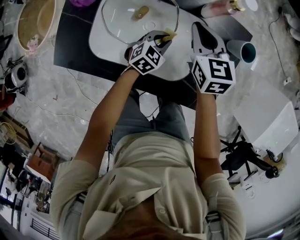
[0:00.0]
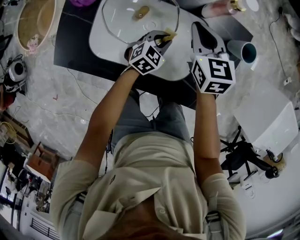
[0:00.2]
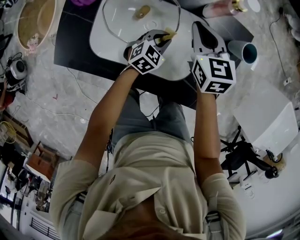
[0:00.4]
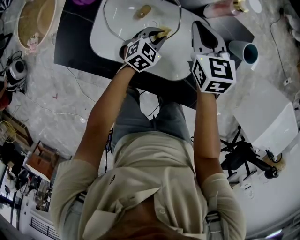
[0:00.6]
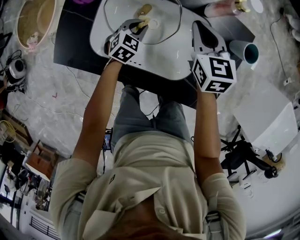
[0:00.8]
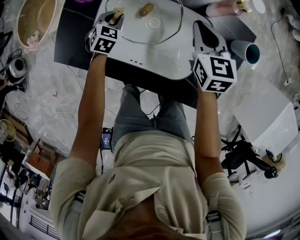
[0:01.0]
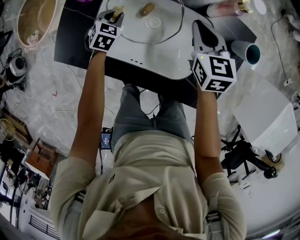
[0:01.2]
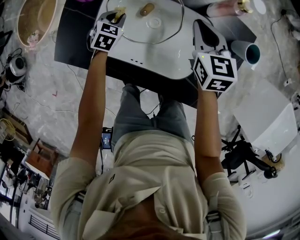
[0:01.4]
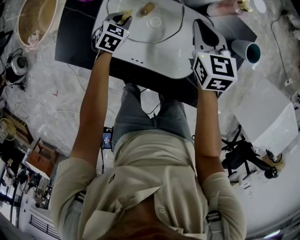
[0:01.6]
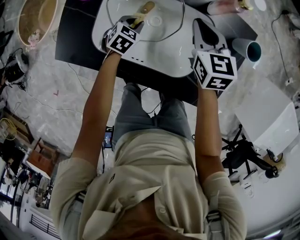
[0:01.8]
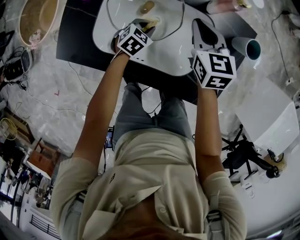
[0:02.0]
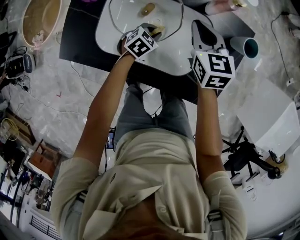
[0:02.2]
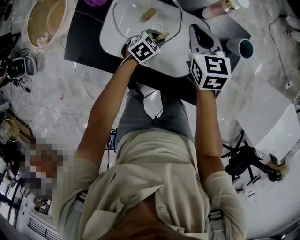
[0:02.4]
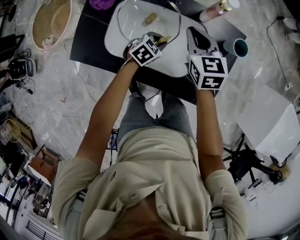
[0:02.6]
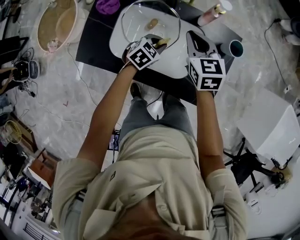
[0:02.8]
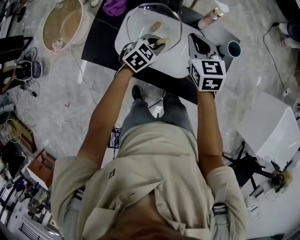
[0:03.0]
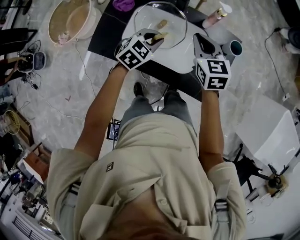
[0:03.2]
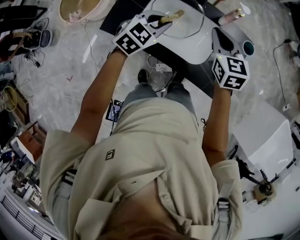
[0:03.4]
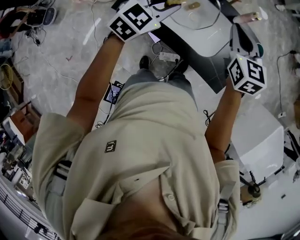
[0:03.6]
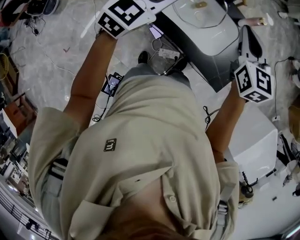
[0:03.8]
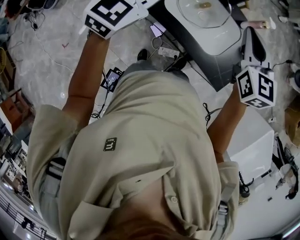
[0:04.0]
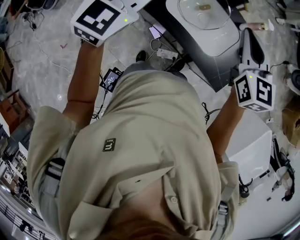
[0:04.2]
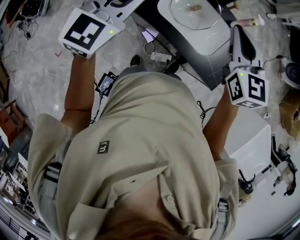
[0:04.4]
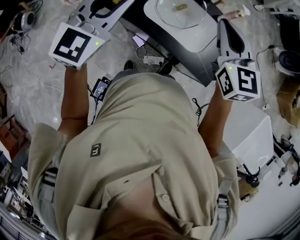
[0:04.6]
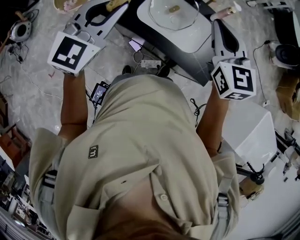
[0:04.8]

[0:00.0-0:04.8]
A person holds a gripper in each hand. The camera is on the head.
0:00.0 to 0:01.6: The left gripper goes approximately 20 cm to the left, and rotates approximately 20 degrees.
0:01.6 to 0:03.2: The right gripper is displaced upward and backward by approximately 15 cm. Meanwhile the left gripper is displaced upward and to the right by approximately 25 cm, and rotates roughly 20 degrees.
0:03.2 to 0:04.8: The left gripper travels upward, to the left and backward by some 40 cm, and swivels approximately 40 degrees, while the right gripper shifts some 25 cm upward and backward, and rotates about 20 degrees.

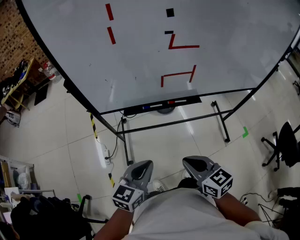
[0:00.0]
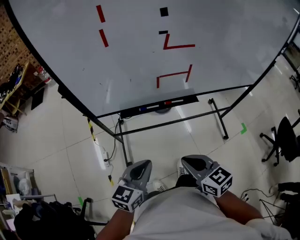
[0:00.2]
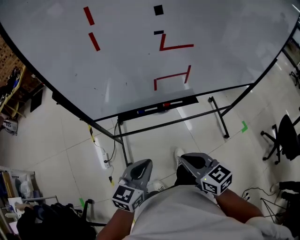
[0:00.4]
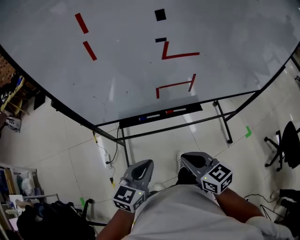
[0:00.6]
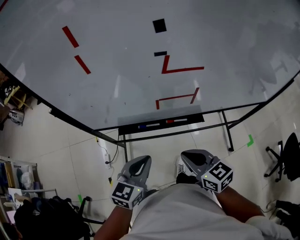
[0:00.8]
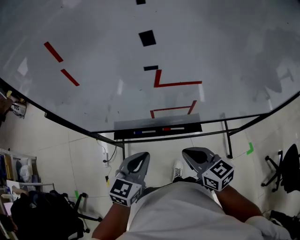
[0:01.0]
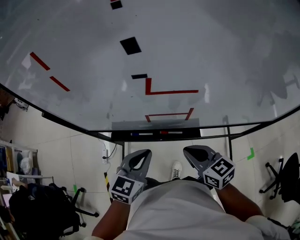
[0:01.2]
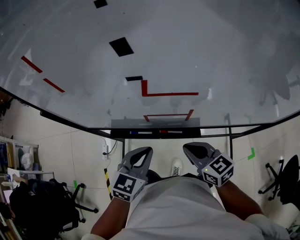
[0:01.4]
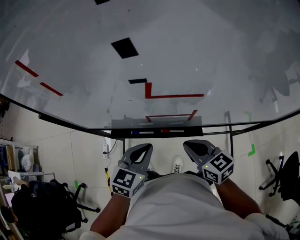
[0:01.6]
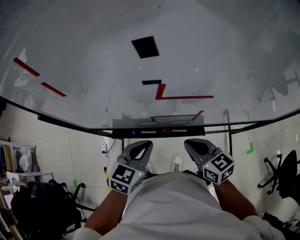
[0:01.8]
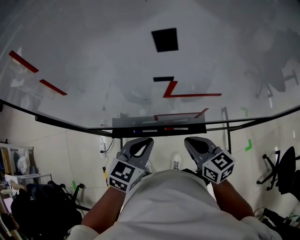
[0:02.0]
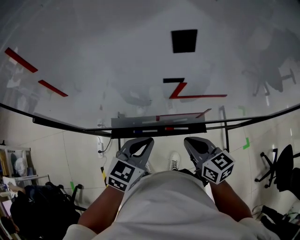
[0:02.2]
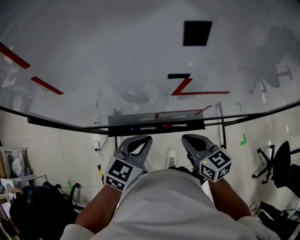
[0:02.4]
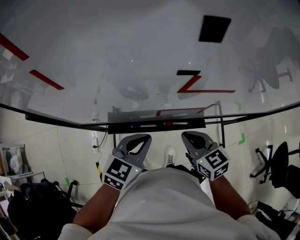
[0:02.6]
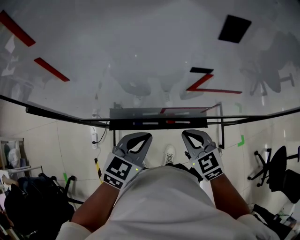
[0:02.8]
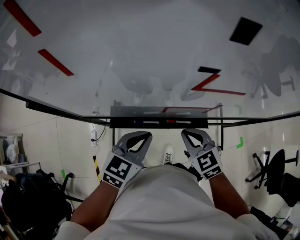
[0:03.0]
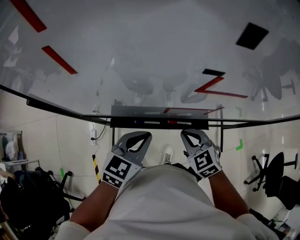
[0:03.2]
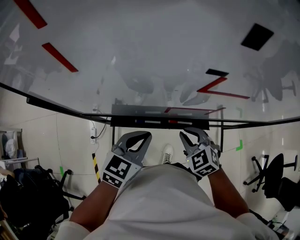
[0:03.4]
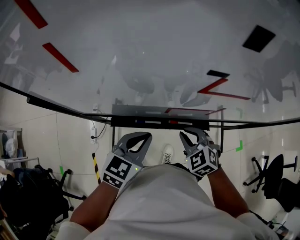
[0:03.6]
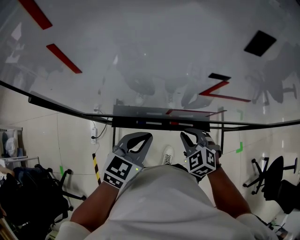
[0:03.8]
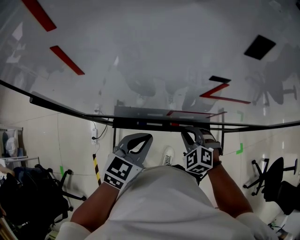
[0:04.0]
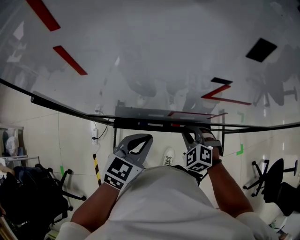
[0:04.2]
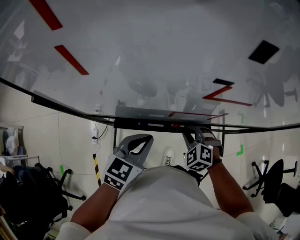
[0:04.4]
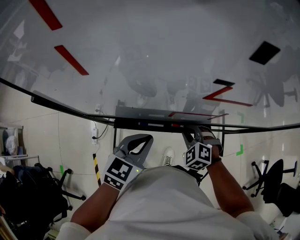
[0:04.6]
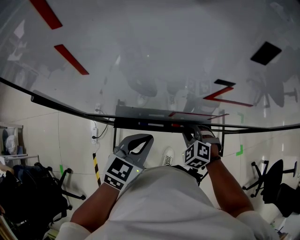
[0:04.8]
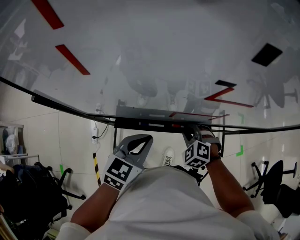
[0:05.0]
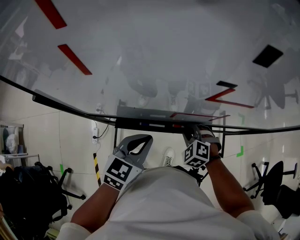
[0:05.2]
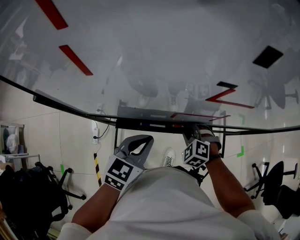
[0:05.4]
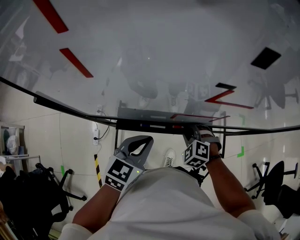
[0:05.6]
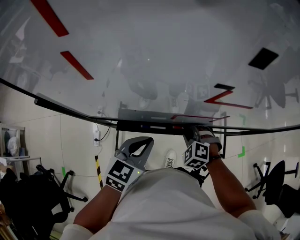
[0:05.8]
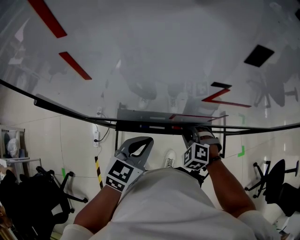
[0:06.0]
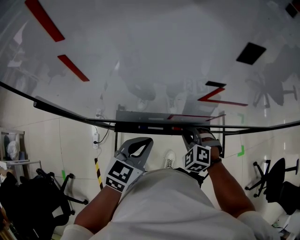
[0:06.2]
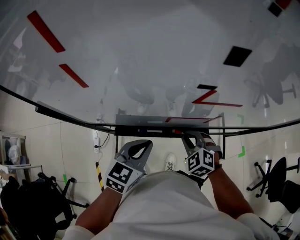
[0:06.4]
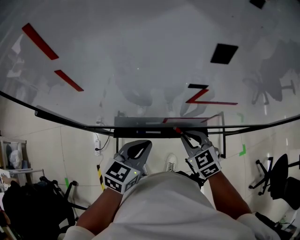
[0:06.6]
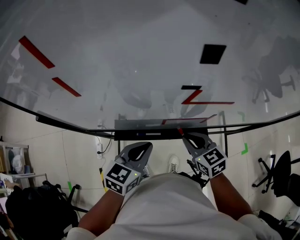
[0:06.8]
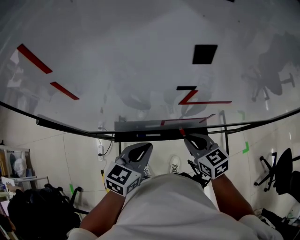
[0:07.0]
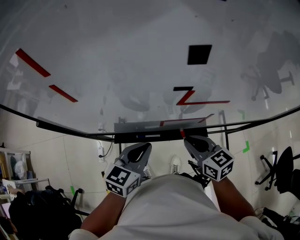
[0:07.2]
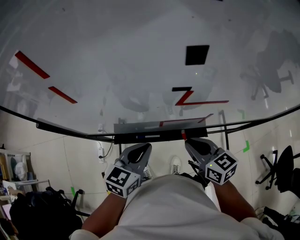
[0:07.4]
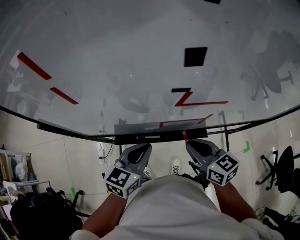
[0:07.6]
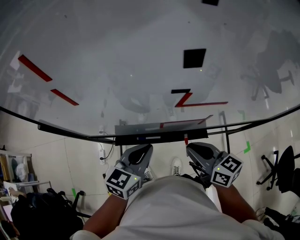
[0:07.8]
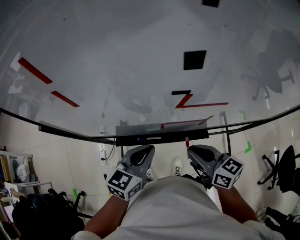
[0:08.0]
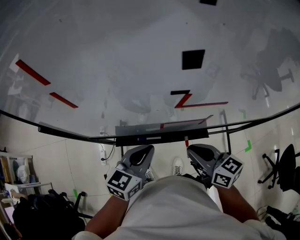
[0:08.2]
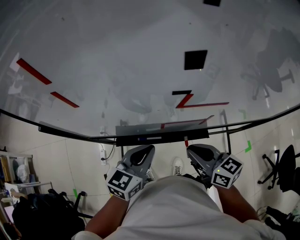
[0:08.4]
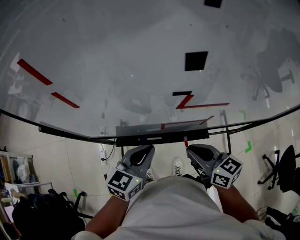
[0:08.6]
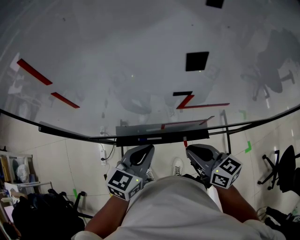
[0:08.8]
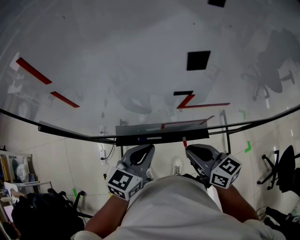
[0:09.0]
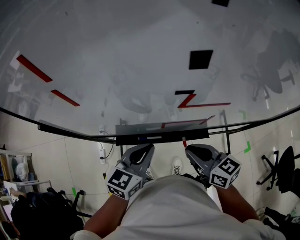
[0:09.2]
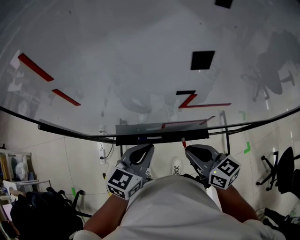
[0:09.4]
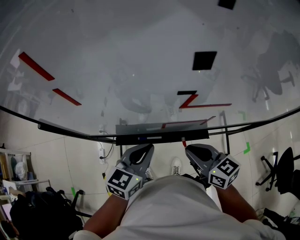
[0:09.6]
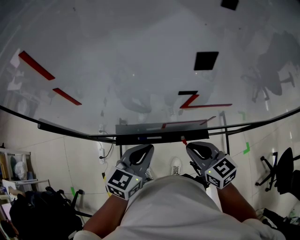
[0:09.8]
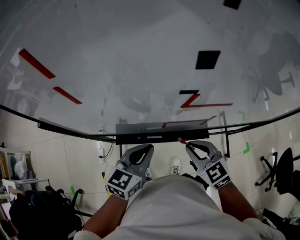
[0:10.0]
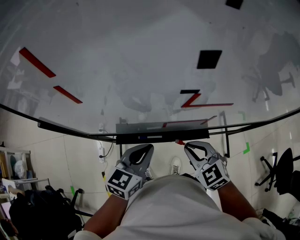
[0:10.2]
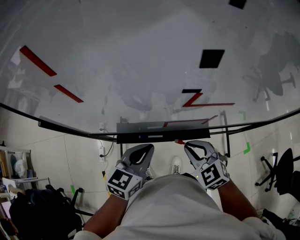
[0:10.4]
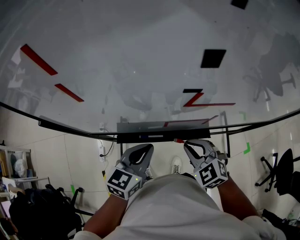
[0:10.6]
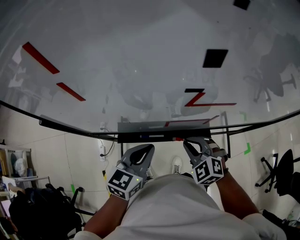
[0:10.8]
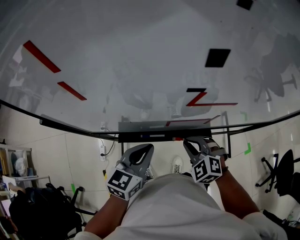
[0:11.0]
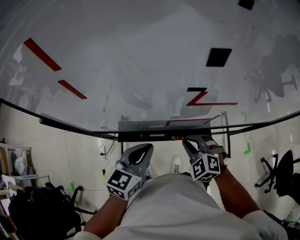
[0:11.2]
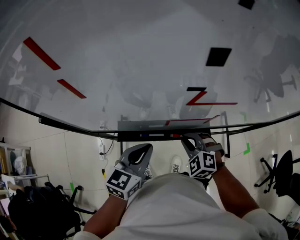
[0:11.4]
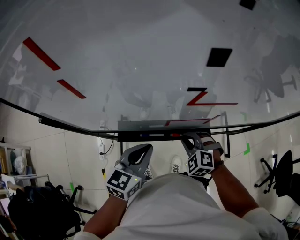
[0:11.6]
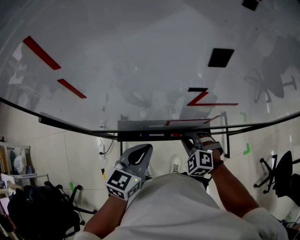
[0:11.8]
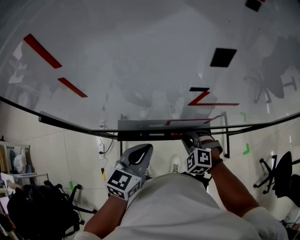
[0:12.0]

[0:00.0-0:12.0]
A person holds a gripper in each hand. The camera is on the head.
0:00.0 to 0:01.6: Both grippers travel together forward and to the right, about 25 cm.
0:01.6 to 0:03.0: The right gripper changes place by approximately 5 cm, and changes its angle by some 30 degrees.
0:03.0 to 0:04.4: The right gripper goes about 5 cm downward, and rotates roughly 40 degrees.
0:04.4 to 0:06.0: The grippers move only a little.
0:06.0 to 0:07.6: The right gripper heads upward, covering about 15 cm, and rolls clockwise, seen from behind, by roughly 70 degrees.
0:07.6 to 0:09.0: There are only small adjustments of the grippers.
0:09.0 to 0:10.4: The right gripper rotates around the line of its fingers by some 40 degrees, counterclockwise from behind.
0:10.4 to 0:12.0: The right gripper goes some 10 cm downward, and rotates approximately 30 degrees.

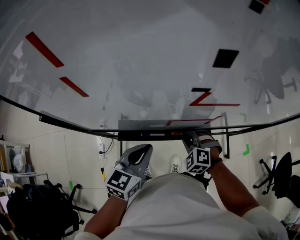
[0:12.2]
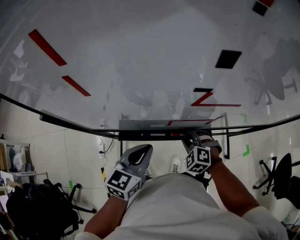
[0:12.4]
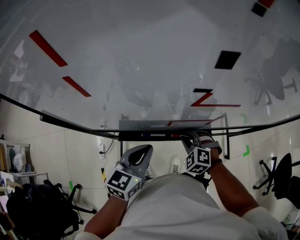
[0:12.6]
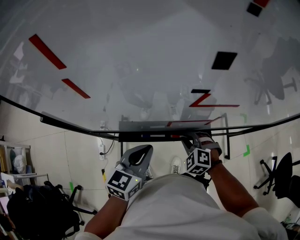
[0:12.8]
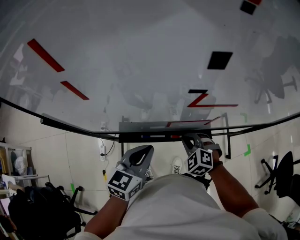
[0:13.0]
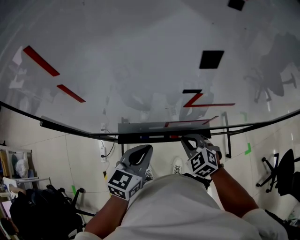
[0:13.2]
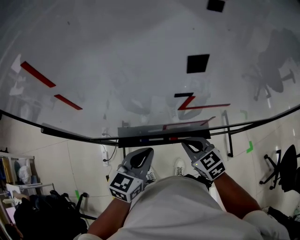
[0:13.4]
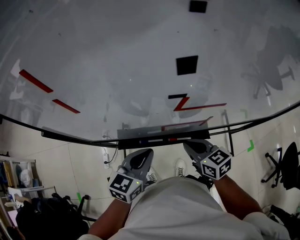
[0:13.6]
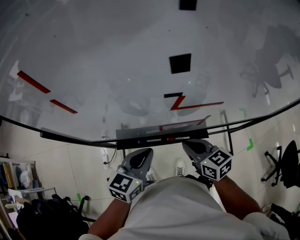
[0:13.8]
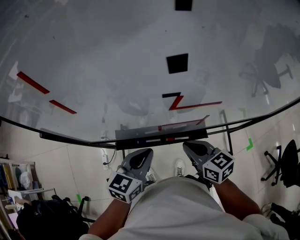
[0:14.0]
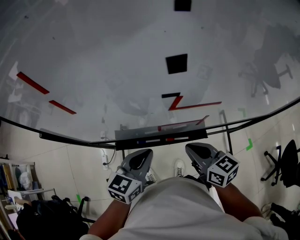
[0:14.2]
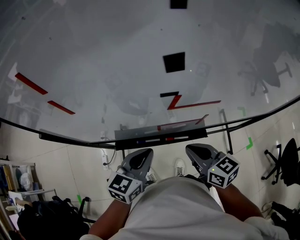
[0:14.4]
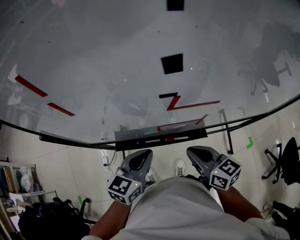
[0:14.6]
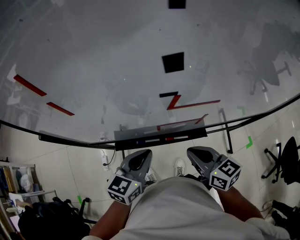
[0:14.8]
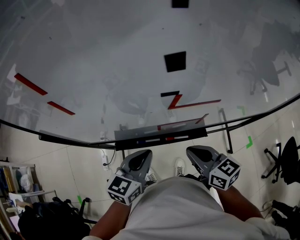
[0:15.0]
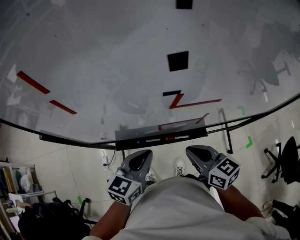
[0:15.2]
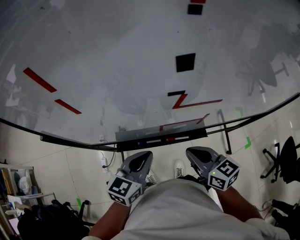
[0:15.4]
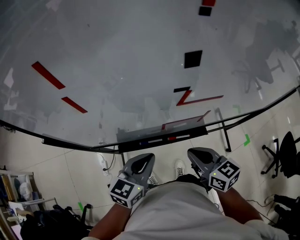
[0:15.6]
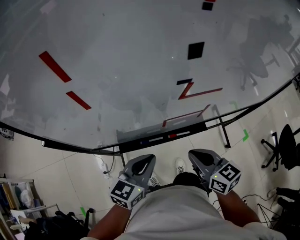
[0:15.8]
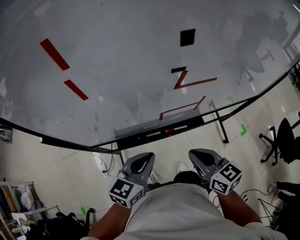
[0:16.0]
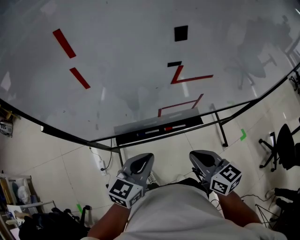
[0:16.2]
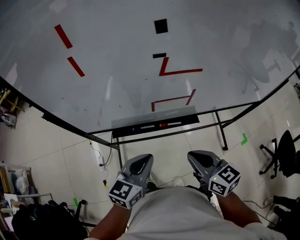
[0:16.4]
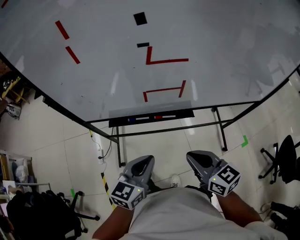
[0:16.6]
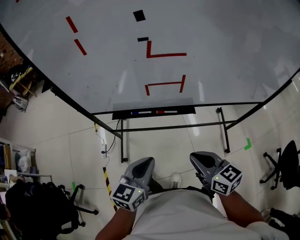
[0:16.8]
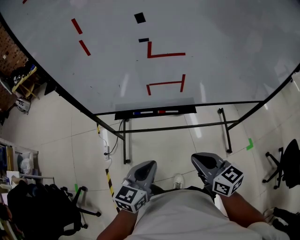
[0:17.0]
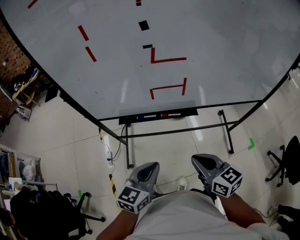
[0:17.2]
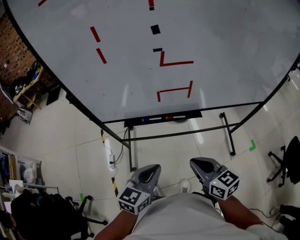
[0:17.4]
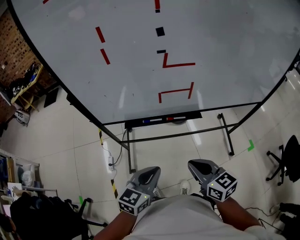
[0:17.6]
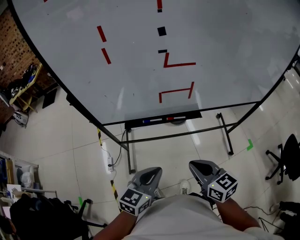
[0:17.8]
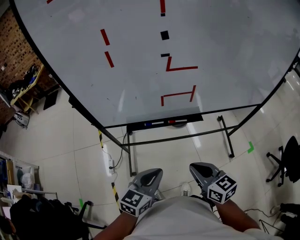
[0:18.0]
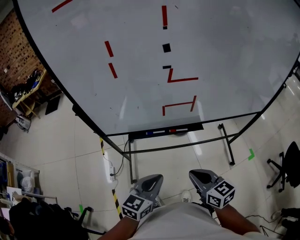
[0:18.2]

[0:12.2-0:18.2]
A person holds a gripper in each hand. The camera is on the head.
0:12.2 to 0:13.8: The right gripper moves upward, some 10 cm, and twists roughly 60 degrees clockwise, seen from behind.
0:13.8 to 0:15.2: The right gripper moves some 5 cm.
0:15.2 to 0:16.6: The two grippers go some 15 cm backward.
0:16.6 to 0:18.2: The right gripper is displaced backward and to the left by approximately 10 cm. Meanwhile the left gripper moves backward, some 5 cm.

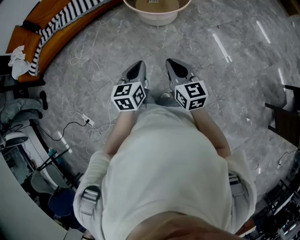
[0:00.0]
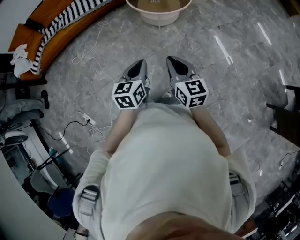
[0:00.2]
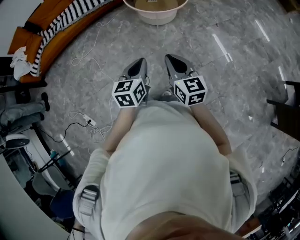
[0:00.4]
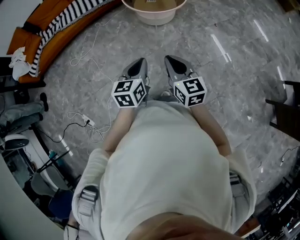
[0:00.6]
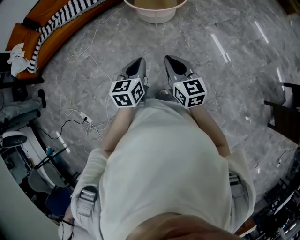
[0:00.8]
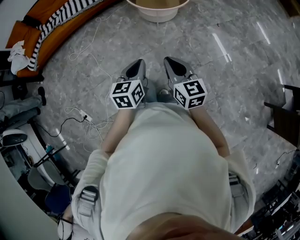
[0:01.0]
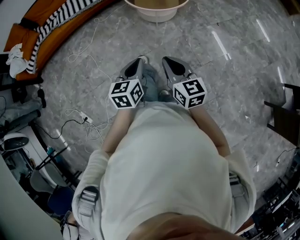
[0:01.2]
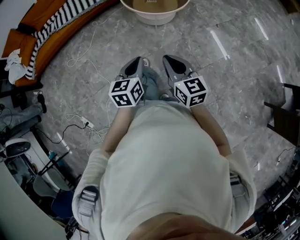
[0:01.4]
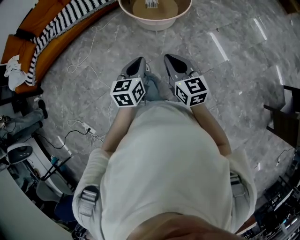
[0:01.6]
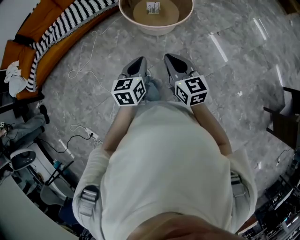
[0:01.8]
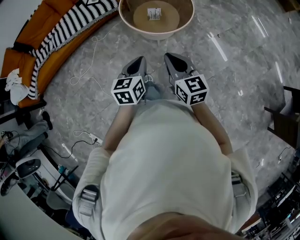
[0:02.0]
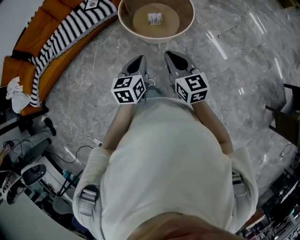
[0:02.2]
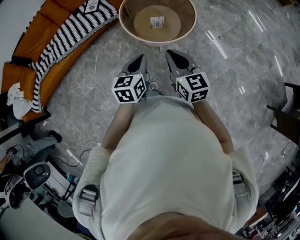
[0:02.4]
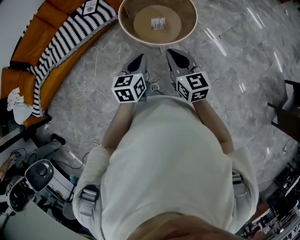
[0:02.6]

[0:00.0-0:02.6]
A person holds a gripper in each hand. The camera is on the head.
0:00.0 to 0:01.2: There are only small adjustments of the grippers.
0:01.2 to 0:02.6: The grippers both shift forward by some 35 cm.
